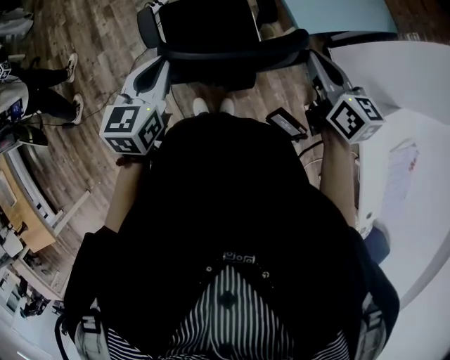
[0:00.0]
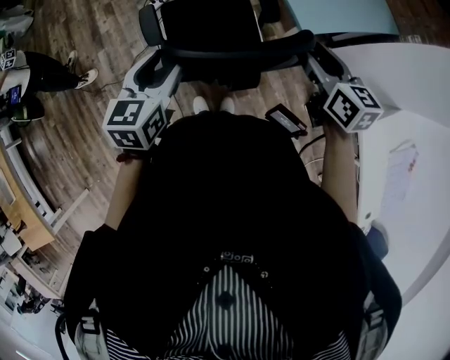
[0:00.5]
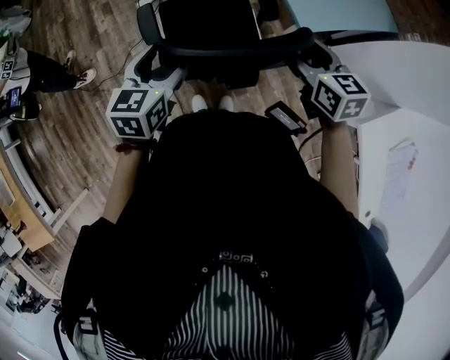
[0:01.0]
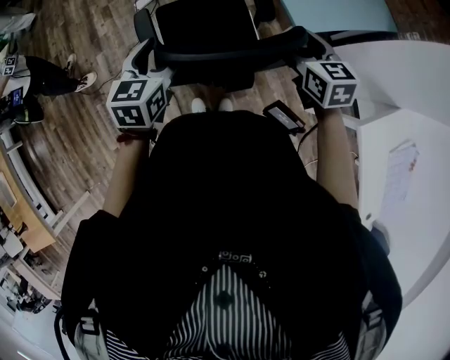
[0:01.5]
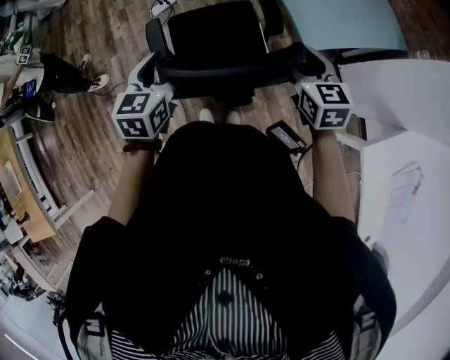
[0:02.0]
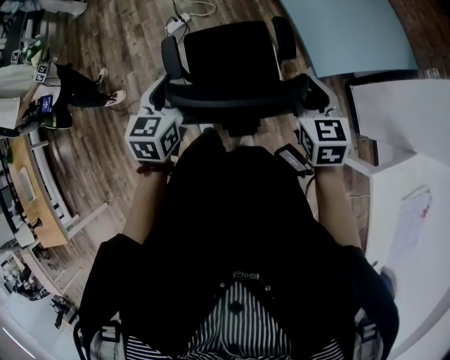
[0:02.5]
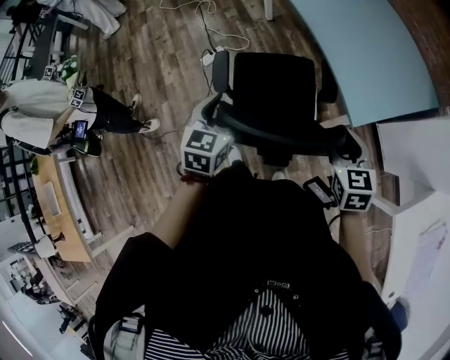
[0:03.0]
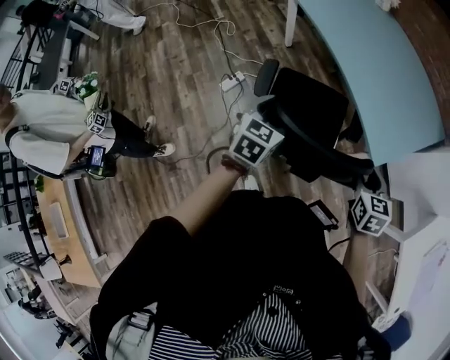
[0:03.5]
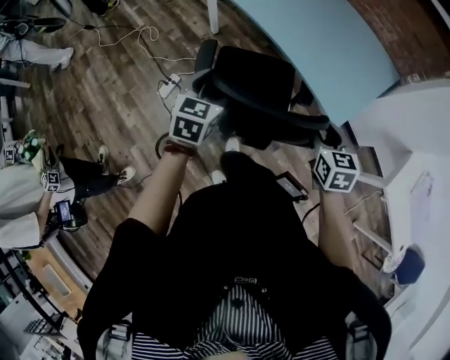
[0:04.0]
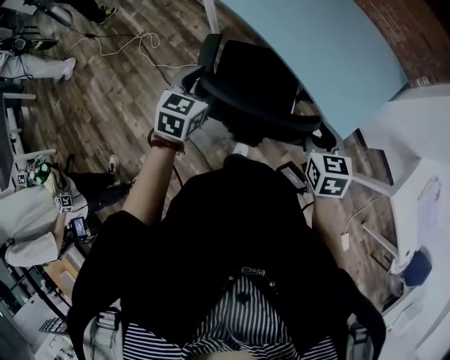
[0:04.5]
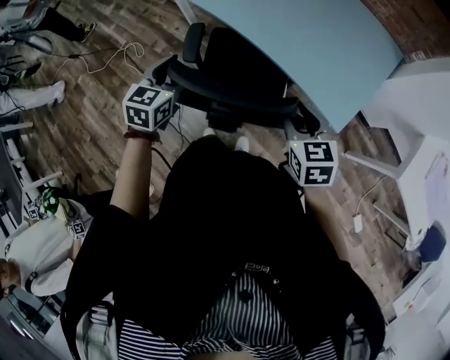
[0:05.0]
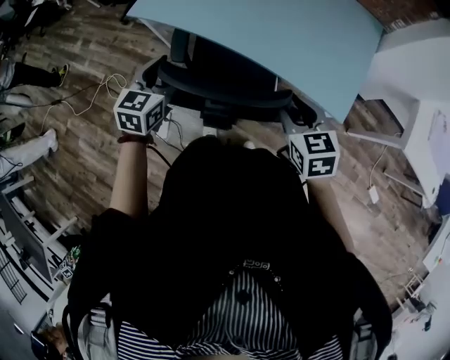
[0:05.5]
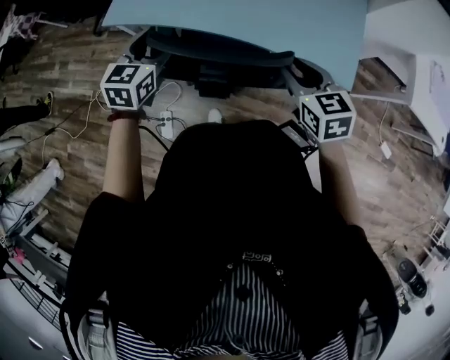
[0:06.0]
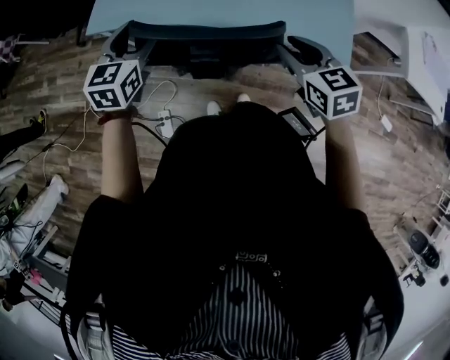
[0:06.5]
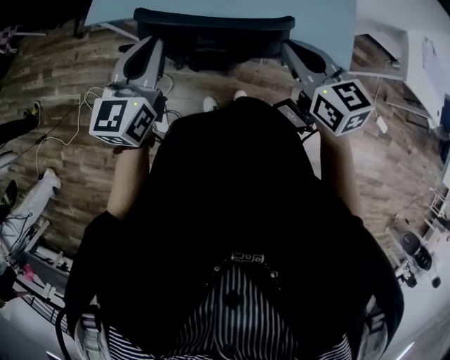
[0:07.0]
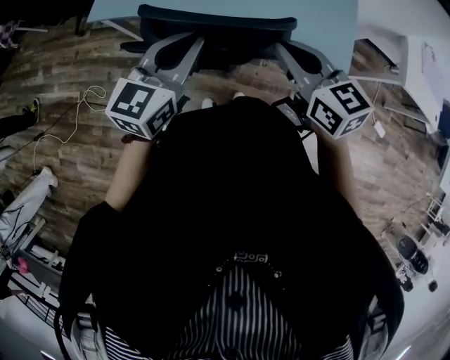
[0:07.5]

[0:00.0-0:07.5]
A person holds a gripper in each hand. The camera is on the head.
0:00.0 to 0:02.0: The right gripper moves forward and downward, roughly 10 cm, rotates roughly 20 degrees, and opens. The left gripper shifts by some 5 cm, and opens.
0:02.0 to 0:04.0: The right gripper shifts by roughly 20 cm, and rotates about 30 degrees, while the left gripper moves roughly 35 cm, and turns by about 30 degrees.
0:04.0 to 0:05.5: The right gripper shifts roughly 20 cm forward and to the left, while the left gripper heads forward, covering roughly 30 cm, and turns by roughly 20 degrees.
0:05.5 to 0:07.5: The left gripper travels upward by approximately 5 cm, reaches approximately 10 cm forward, then returns, turns by some 30 degrees, and closes, while the right gripper is displaced to the left and upward by approximately 15 cm, and closes its fingers.

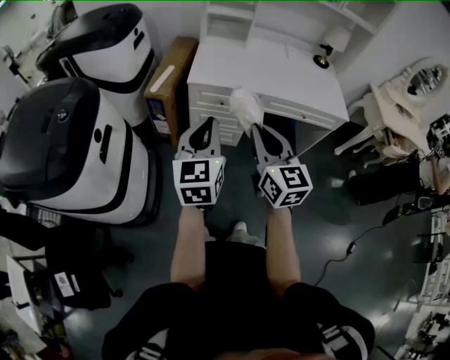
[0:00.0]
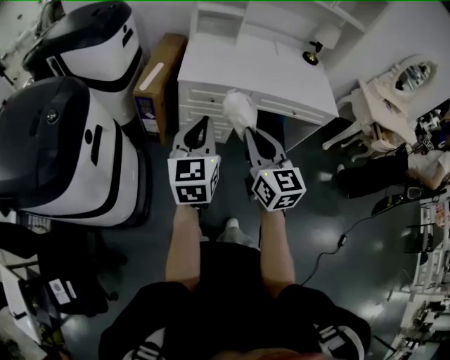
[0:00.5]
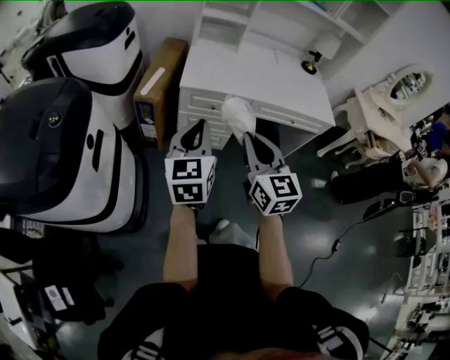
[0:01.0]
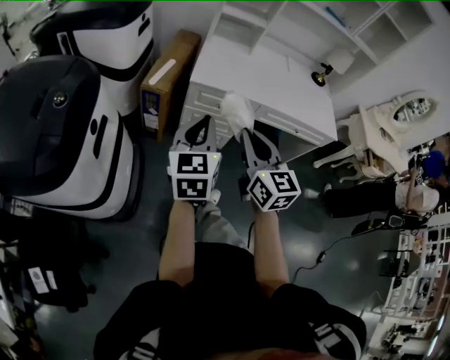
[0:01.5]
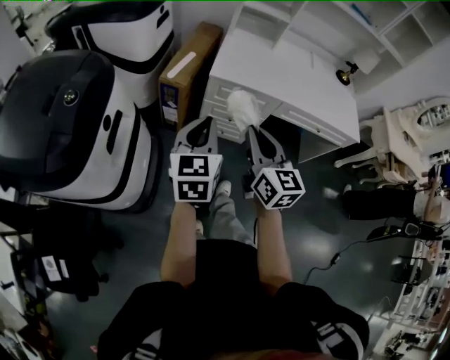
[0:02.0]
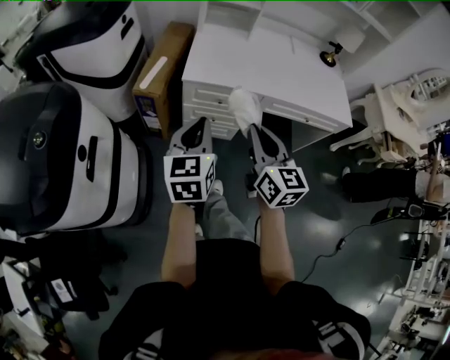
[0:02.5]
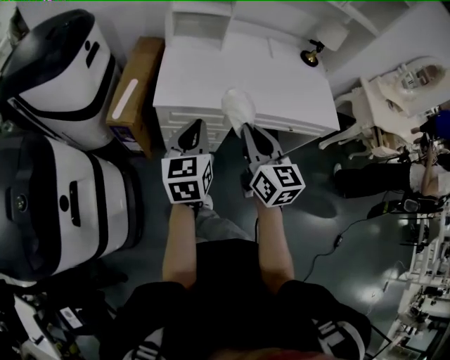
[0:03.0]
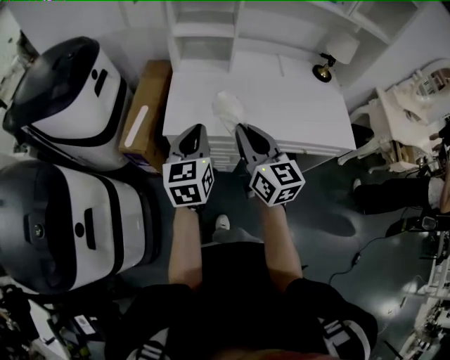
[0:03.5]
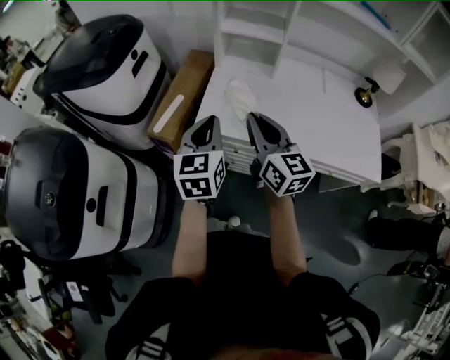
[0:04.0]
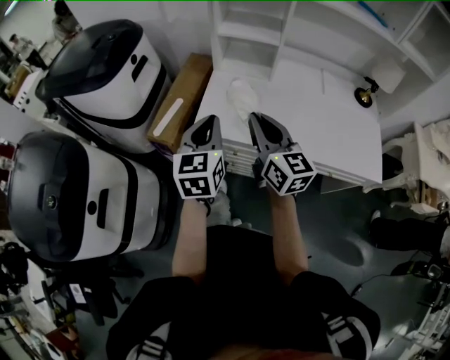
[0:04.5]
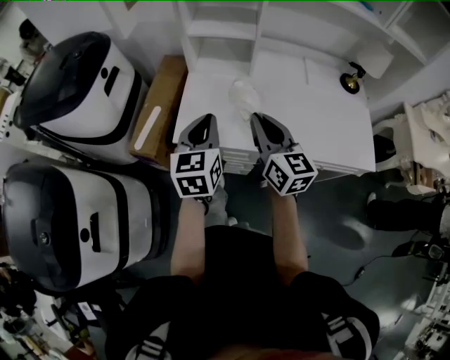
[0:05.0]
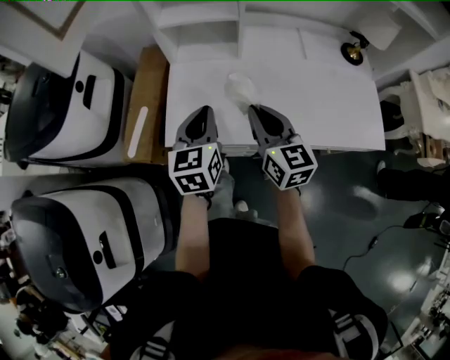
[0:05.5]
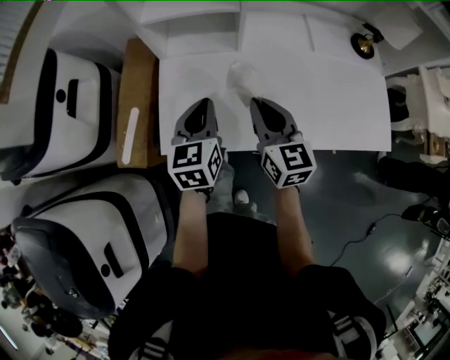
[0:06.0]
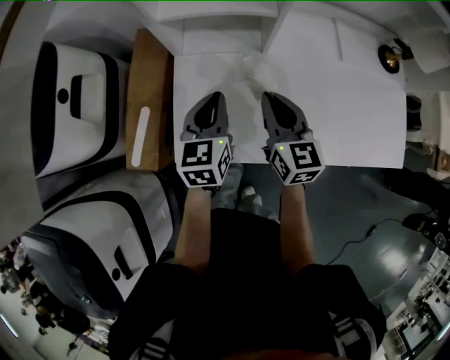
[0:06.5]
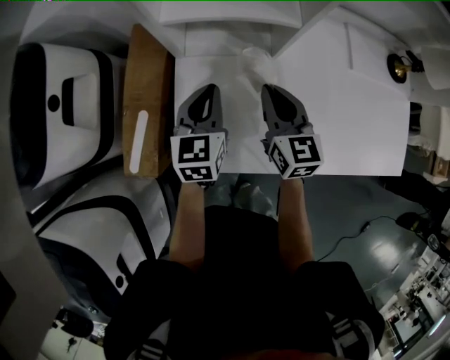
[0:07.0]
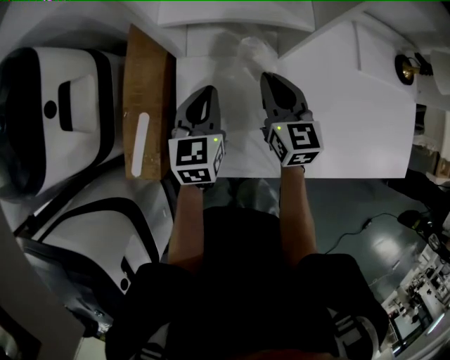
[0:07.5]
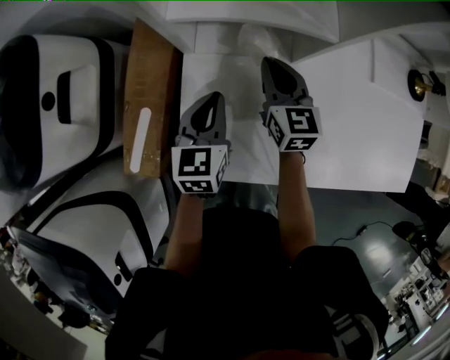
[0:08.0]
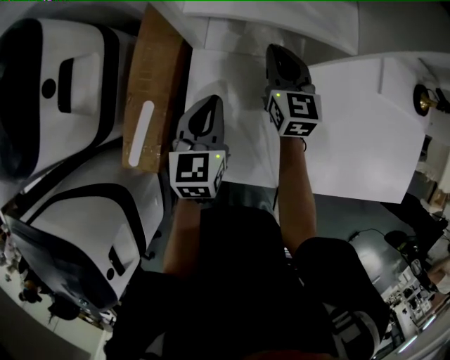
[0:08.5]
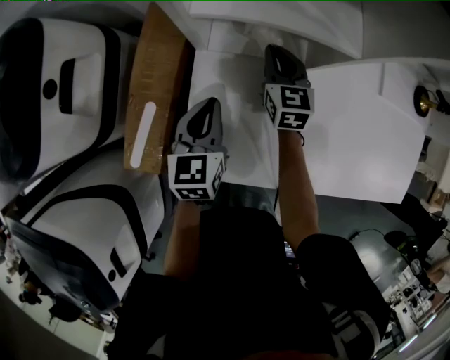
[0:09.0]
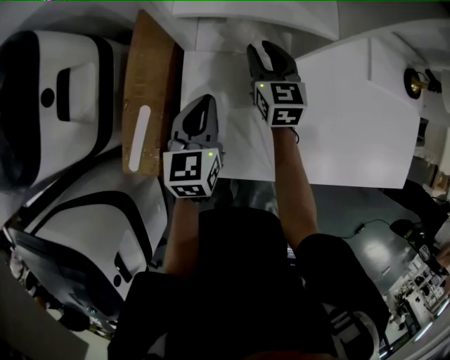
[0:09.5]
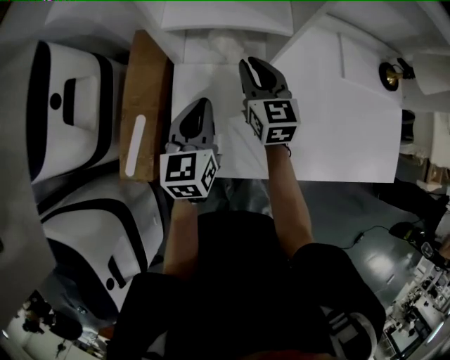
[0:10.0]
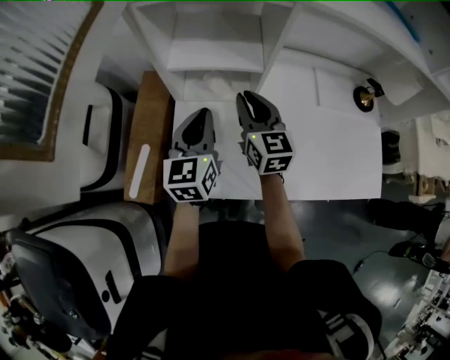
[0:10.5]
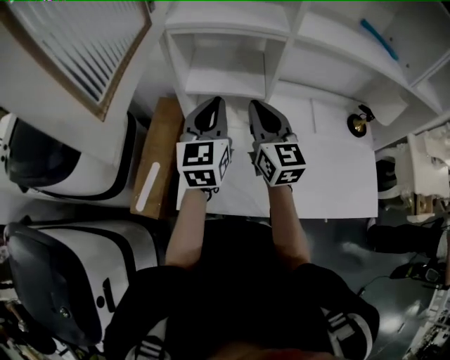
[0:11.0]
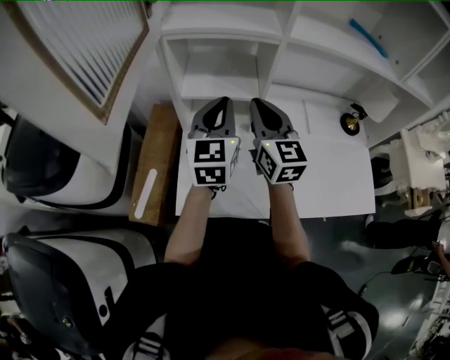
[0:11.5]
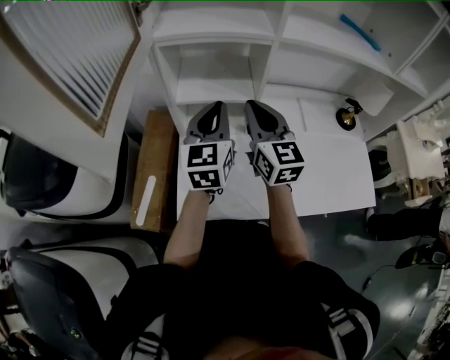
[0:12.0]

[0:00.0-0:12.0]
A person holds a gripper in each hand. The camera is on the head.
0:00.0 to 0:02.0: Both grippers move to the left and forward, some 10 cm.
0:02.0 to 0:04.0: Both grippers move forward and to the right, about 35 cm.
0:04.0 to 0:06.0: Both grippers travel together forward, to the right and downward, approximately 25 cm. The right gripper turns by some 20 degrees.
0:06.0 to 0:08.0: The right gripper travels forward and downward by about 25 cm, while the left gripper moves forward, downward and to the left, approximately 20 cm.
0:08.0 to 0:10.0: The two grippers go roughly 5 cm upward.
0:10.0 to 0:12.0: The grippers both shift upward by approximately 20 cm.

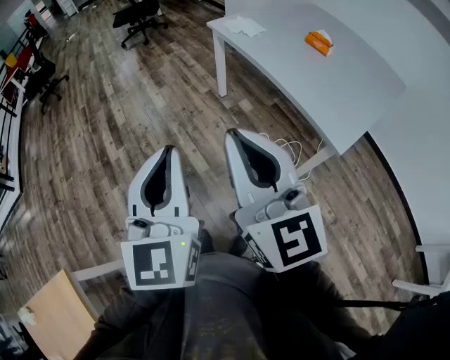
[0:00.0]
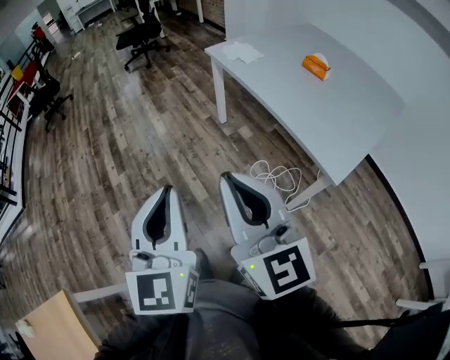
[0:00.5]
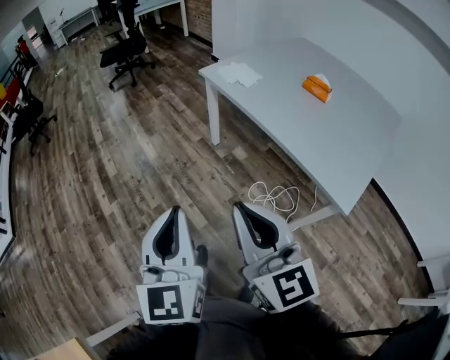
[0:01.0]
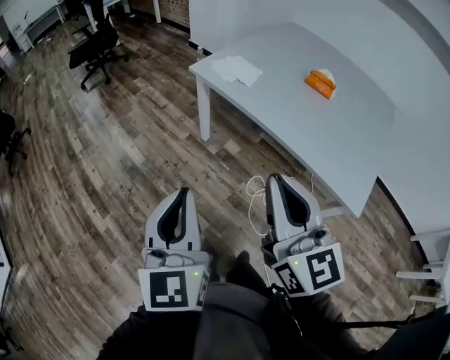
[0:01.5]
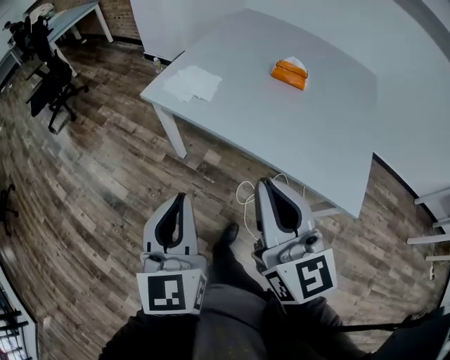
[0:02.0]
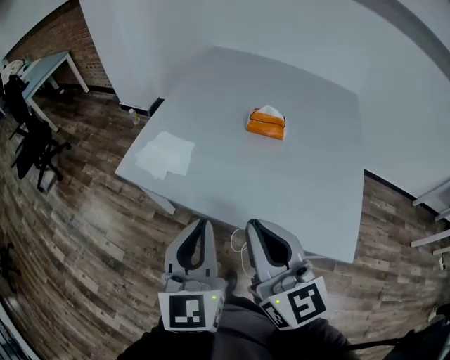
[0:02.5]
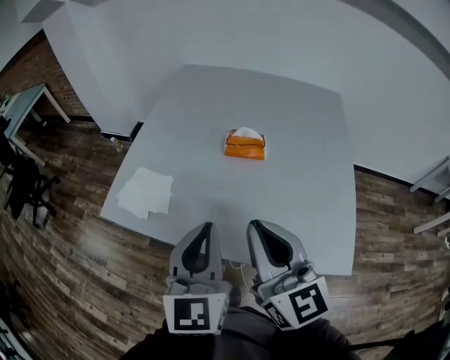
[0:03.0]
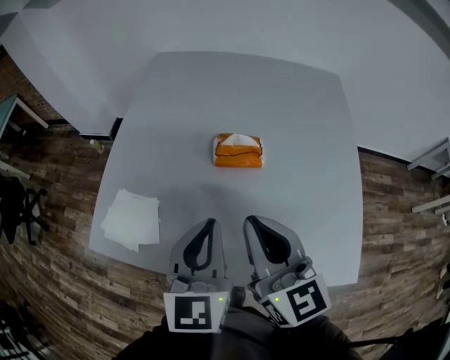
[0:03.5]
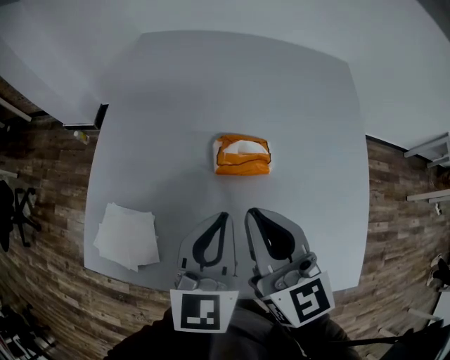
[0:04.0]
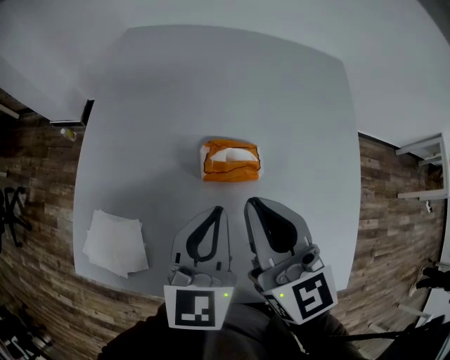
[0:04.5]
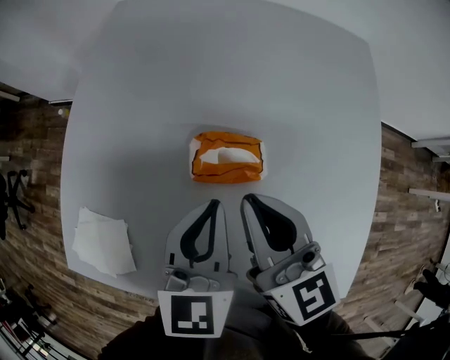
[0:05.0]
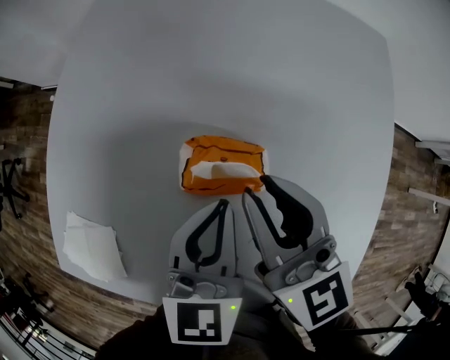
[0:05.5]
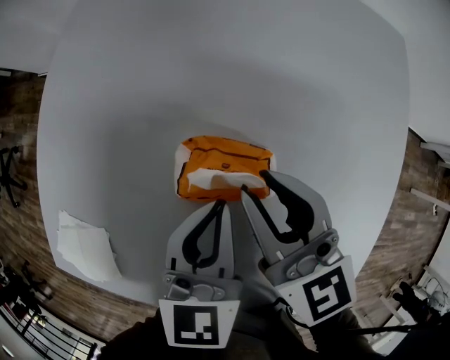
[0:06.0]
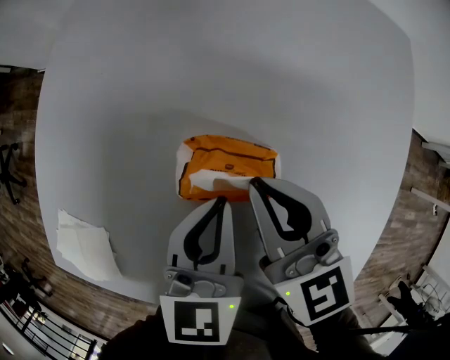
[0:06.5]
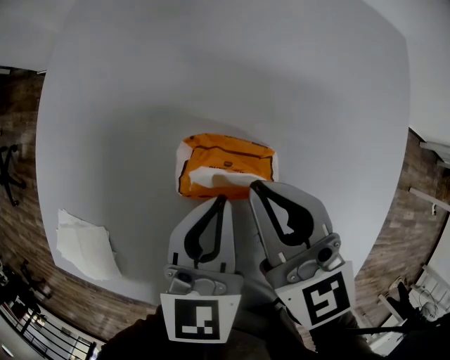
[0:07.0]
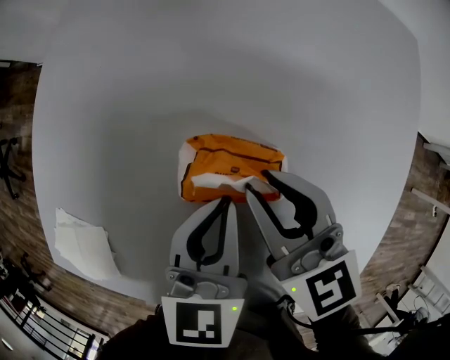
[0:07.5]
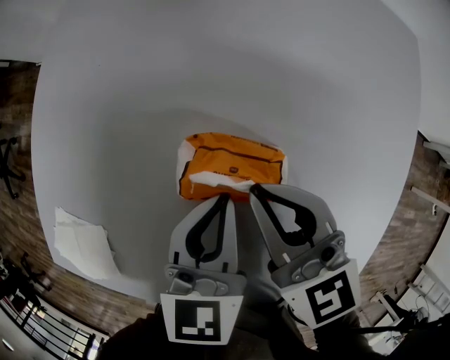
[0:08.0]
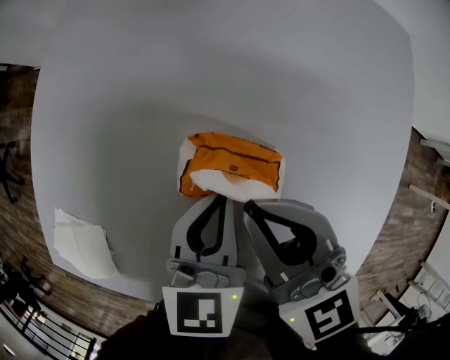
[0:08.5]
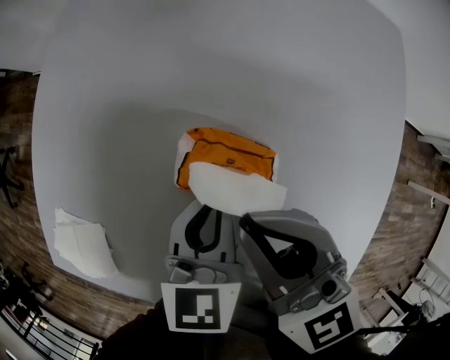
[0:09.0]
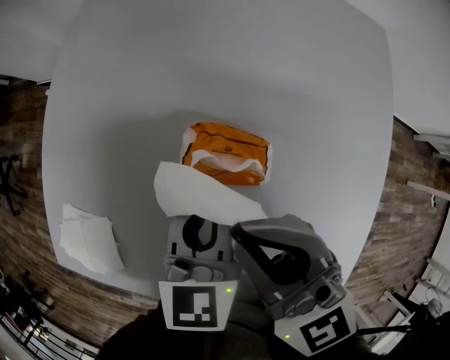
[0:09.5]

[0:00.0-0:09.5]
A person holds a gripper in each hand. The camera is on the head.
0:00.0 to 0:02.0: Both grippers are carried some 40 cm. The left gripper swivels approximately 30 degrees. Meanwhile the right gripper rotates about 30 degrees.
0:02.0 to 0:04.0: Both grippers are carried about 50 cm. The left gripper turns by some 40 degrees, while the right gripper swivels roughly 20 degrees.
0:04.0 to 0:05.5: Both grippers move forward, downward and to the right, about 15 cm.
0:05.5 to 0:07.5: The right gripper shifts approximately 10 cm downward. Meanwhile the left gripper heads downward, covering about 5 cm.
0:07.5 to 0:09.5: The right gripper is displaced upward and backward by about 15 cm.
